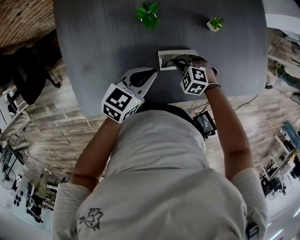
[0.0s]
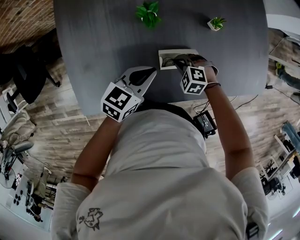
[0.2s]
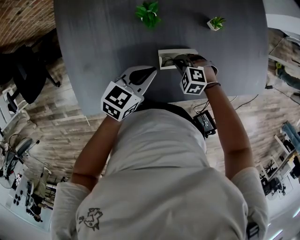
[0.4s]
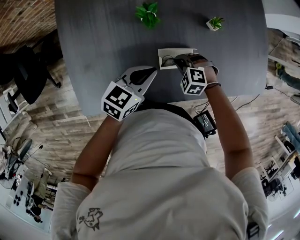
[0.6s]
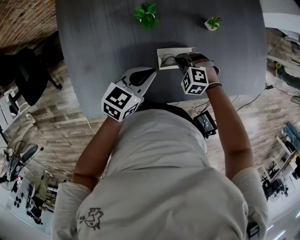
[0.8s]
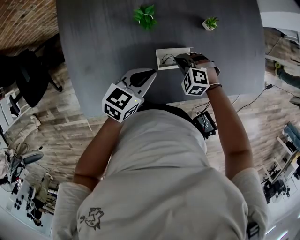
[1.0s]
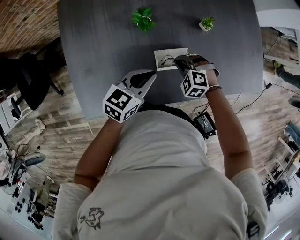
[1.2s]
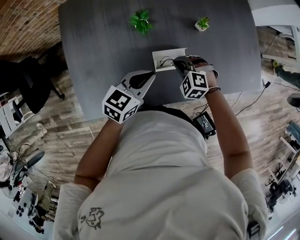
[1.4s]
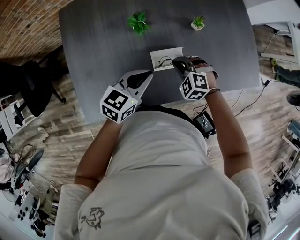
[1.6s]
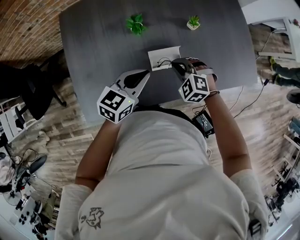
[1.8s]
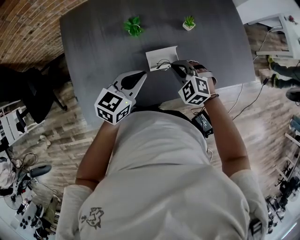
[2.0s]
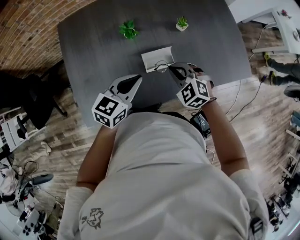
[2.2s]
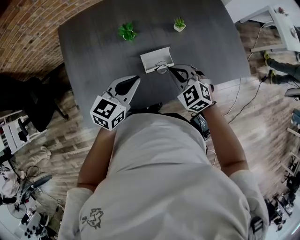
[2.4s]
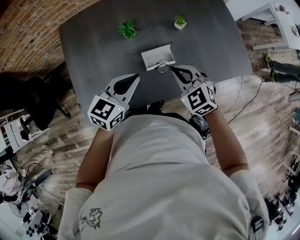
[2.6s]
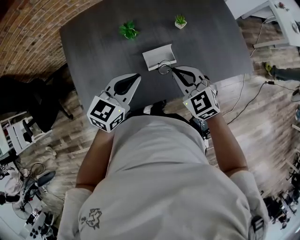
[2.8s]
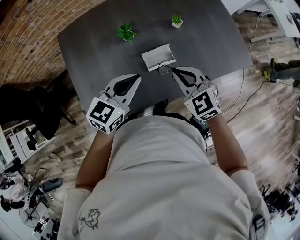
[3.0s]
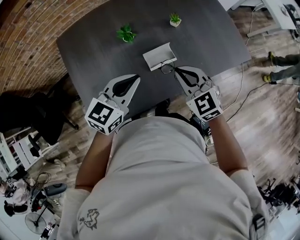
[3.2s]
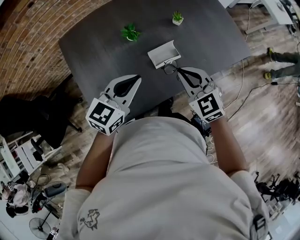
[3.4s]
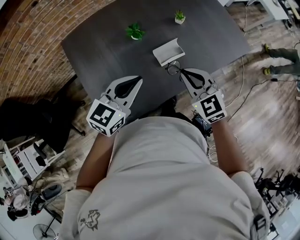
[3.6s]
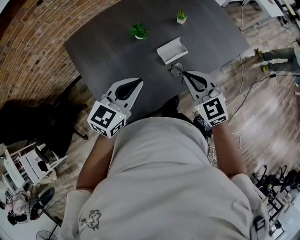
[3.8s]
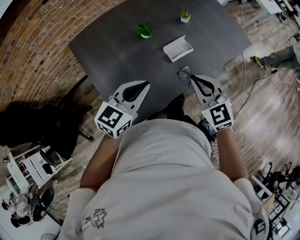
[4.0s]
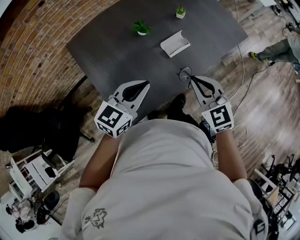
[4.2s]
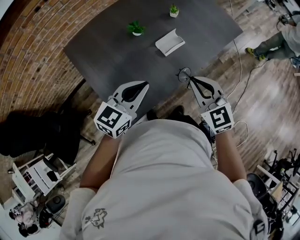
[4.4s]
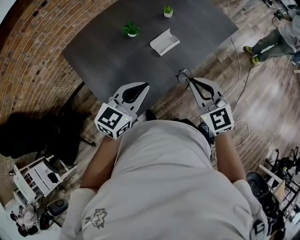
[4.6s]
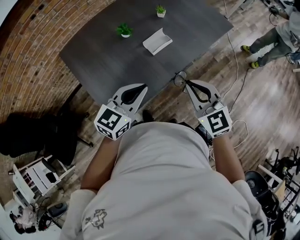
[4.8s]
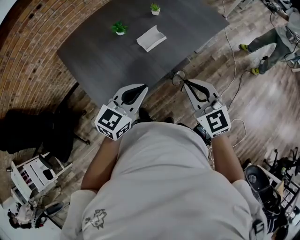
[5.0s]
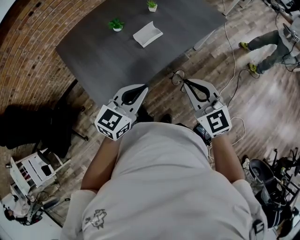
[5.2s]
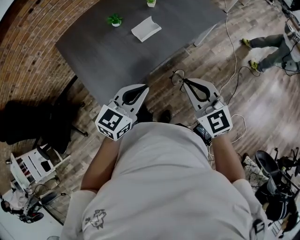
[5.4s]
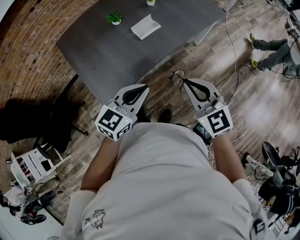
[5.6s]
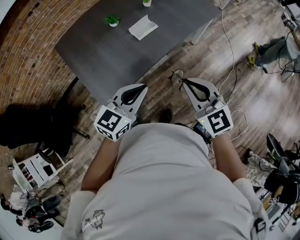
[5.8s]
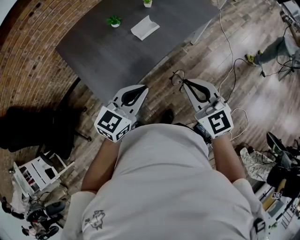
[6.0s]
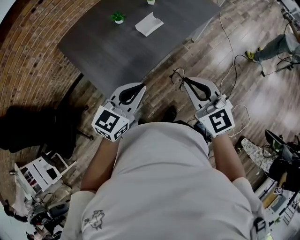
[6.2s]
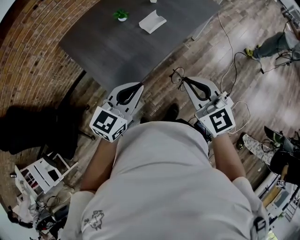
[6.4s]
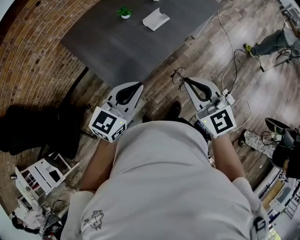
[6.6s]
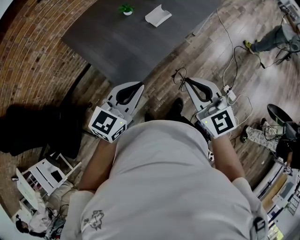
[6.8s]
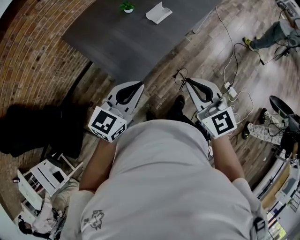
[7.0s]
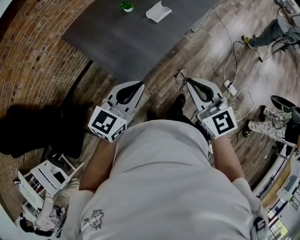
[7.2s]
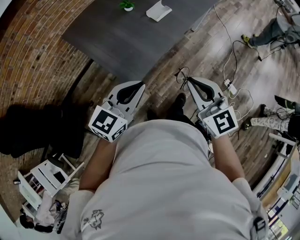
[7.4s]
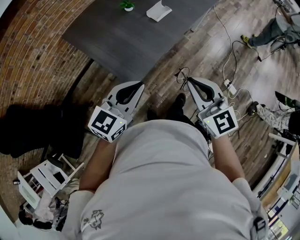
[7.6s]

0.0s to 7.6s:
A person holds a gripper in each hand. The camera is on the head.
0.0s to 1.6s: The right gripper goes some 10 cm upward. Meanwhile the left gripper changes place by approximately 5 cm.
1.6s to 3.0s: The left gripper travels upward by about 10 cm; the right gripper moves upward and backward, some 20 cm, and rotates approximately 40 degrees.
3.0s to 4.6s: The left gripper travels backward and to the left by about 20 cm, and swivels approximately 20 degrees, while the right gripper shifts roughly 20 cm backward, and changes its angle by about 30 degrees.
4.6s to 6.0s: The two grippers go about 15 cm backward and to the right.
6.0s to 7.6s: The left gripper moves to the left and backward, roughly 20 cm. Meanwhile the right gripper shifts about 20 cm backward and to the left.

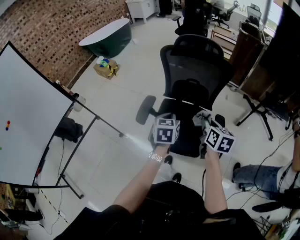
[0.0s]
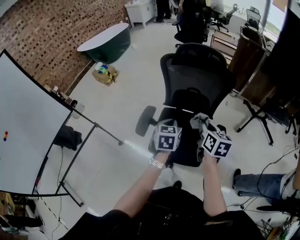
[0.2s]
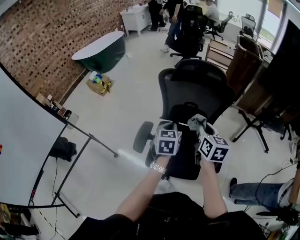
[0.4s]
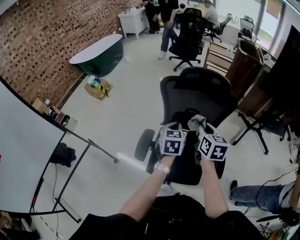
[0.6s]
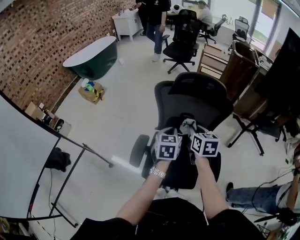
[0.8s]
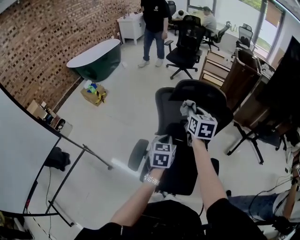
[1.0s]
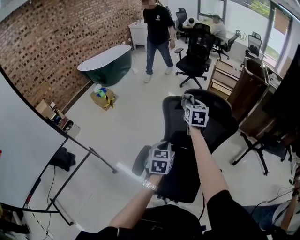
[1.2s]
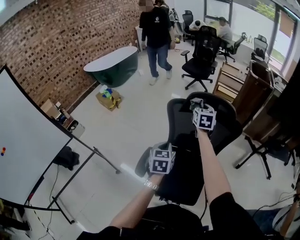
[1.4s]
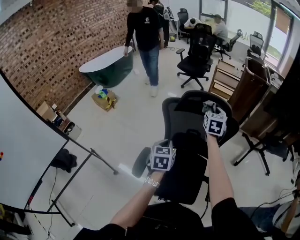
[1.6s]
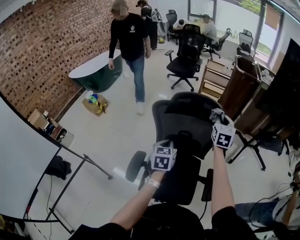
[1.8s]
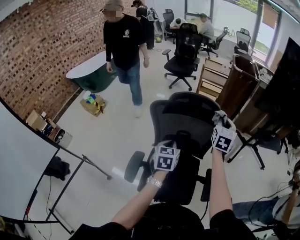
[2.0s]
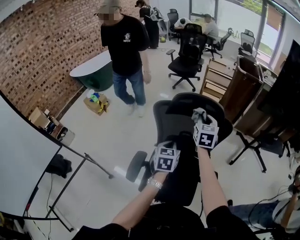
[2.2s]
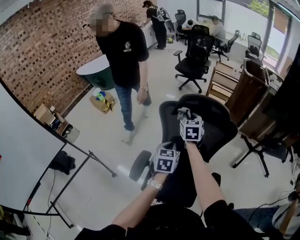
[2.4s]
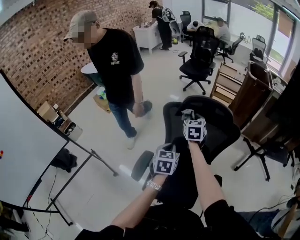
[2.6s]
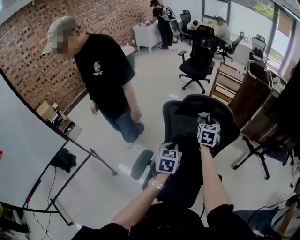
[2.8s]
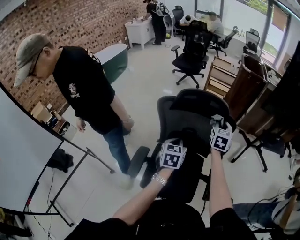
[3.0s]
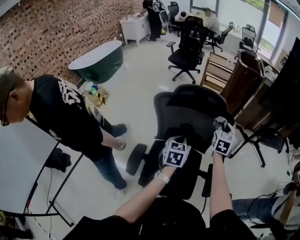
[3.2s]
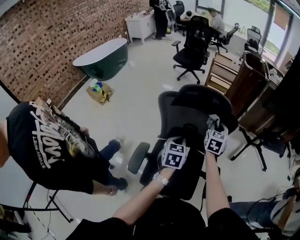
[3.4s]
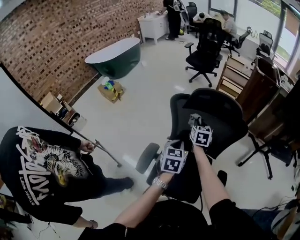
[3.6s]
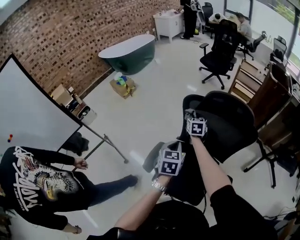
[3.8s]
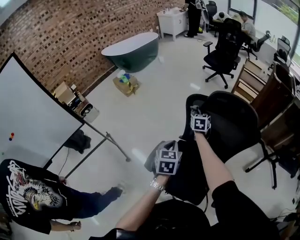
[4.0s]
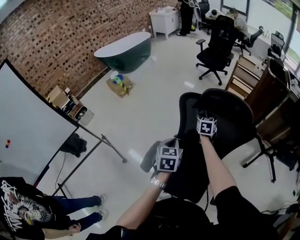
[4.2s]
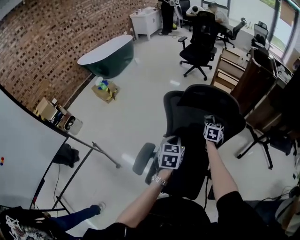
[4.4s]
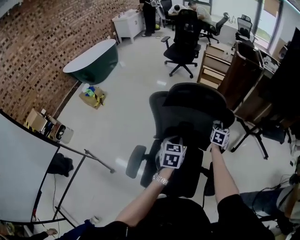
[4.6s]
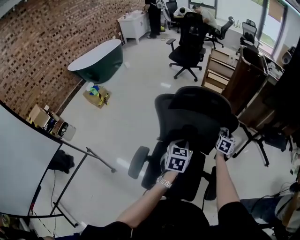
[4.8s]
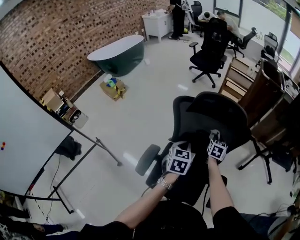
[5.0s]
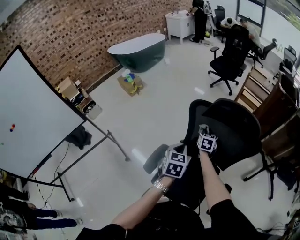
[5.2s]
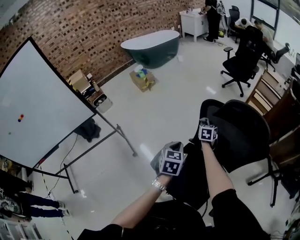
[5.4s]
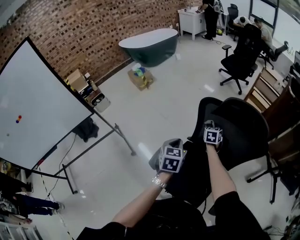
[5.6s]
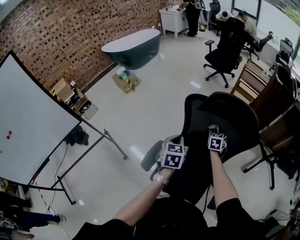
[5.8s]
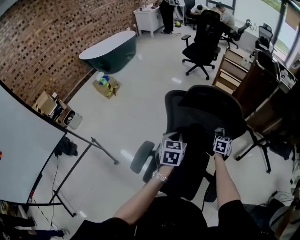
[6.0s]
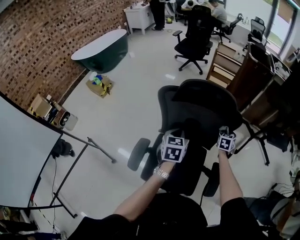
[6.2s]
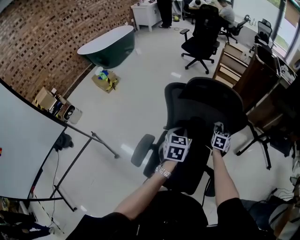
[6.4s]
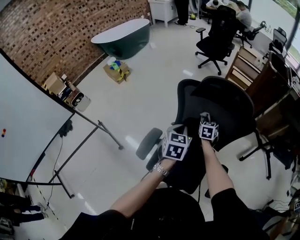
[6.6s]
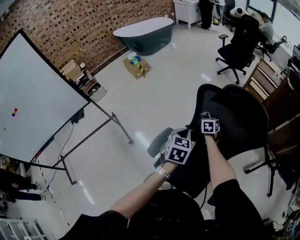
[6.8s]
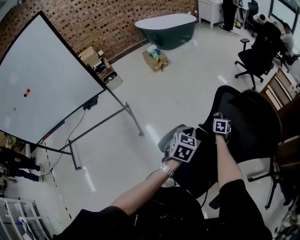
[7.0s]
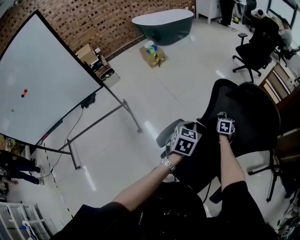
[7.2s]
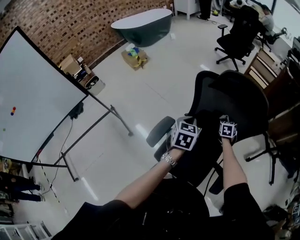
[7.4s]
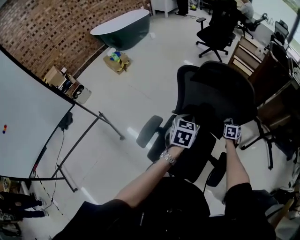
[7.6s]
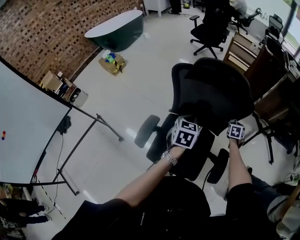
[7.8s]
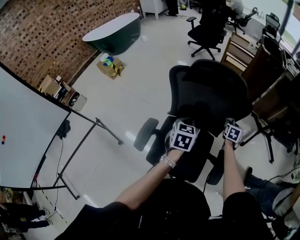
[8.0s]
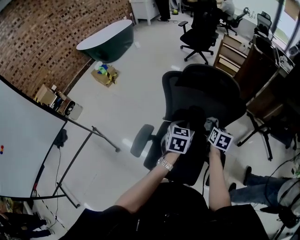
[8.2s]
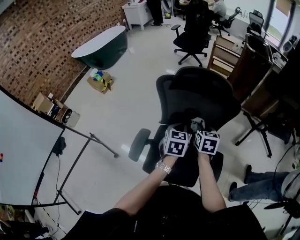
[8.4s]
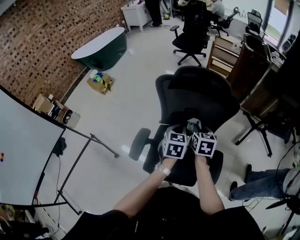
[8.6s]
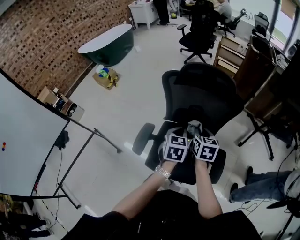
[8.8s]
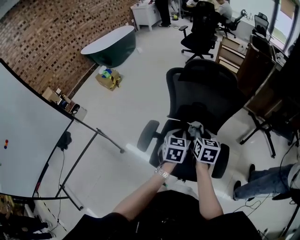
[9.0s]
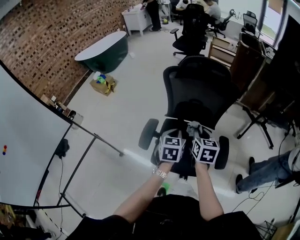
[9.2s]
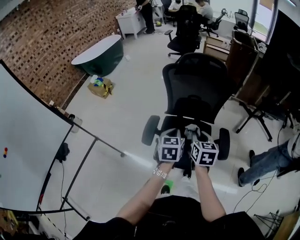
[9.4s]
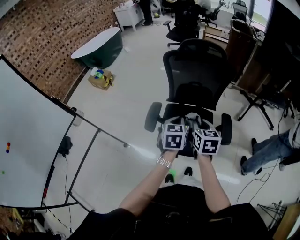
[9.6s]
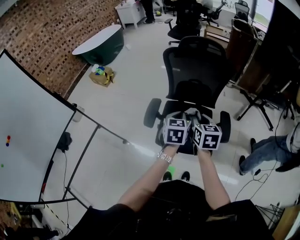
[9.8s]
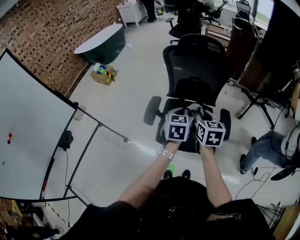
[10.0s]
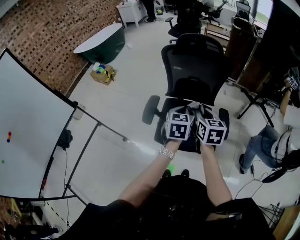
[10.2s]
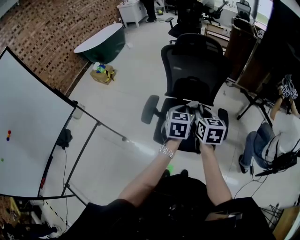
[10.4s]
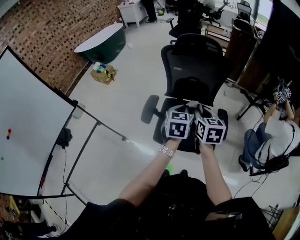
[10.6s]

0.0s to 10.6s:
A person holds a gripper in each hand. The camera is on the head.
0.0s to 1.6s: The left gripper is displaced forward by some 20 cm. Meanwhile the right gripper moves forward, about 40 cm, and rotates some 30 degrees.
1.6s to 3.0s: The right gripper moves left and right over approximately 25 cm, changing direction 2 times; the left gripper goes left and right, approximately 5 cm each way, reversing 2 times.
3.0s to 4.6s: The right gripper travels downward by about 15 cm.
6.0s to 7.6s: The right gripper moves downward, approximately 5 cm.
7.6s to 9.0s: The left gripper shifts roughly 10 cm backward; the right gripper travels backward, upward and to the left by about 35 cm, and swivels approximately 30 degrees.
9.0s to 10.6s: Both grippers travel together backward and upward, approximately 15 cm.

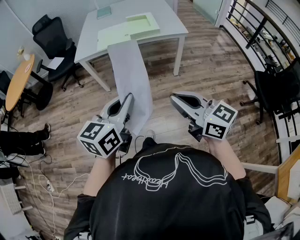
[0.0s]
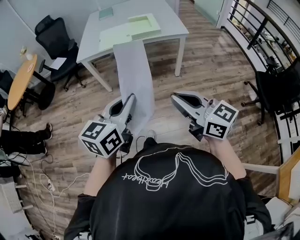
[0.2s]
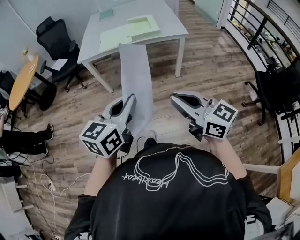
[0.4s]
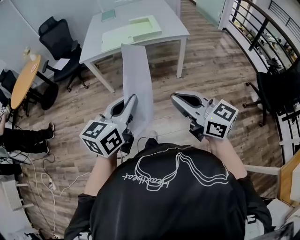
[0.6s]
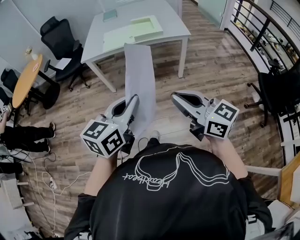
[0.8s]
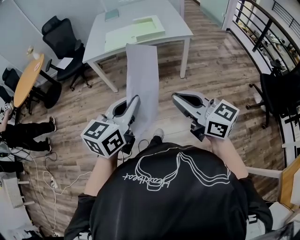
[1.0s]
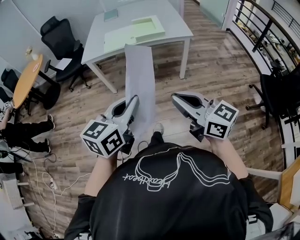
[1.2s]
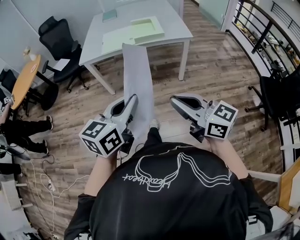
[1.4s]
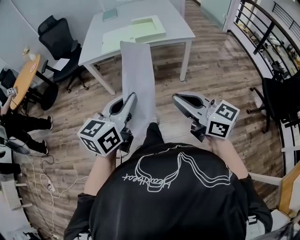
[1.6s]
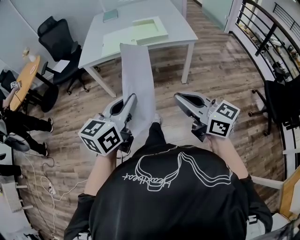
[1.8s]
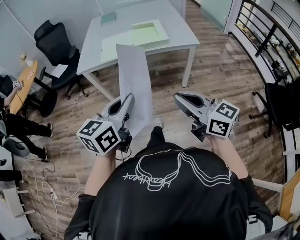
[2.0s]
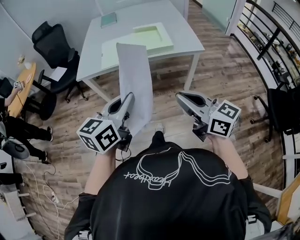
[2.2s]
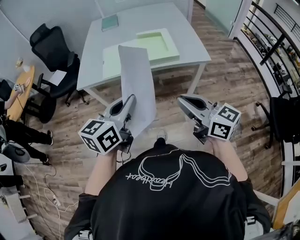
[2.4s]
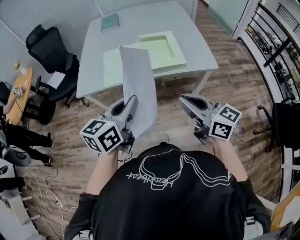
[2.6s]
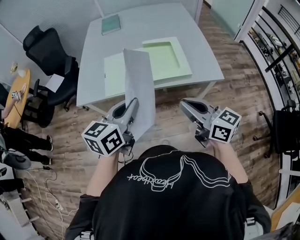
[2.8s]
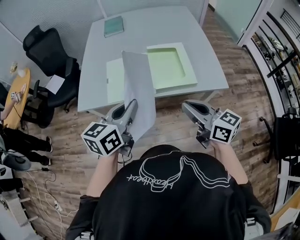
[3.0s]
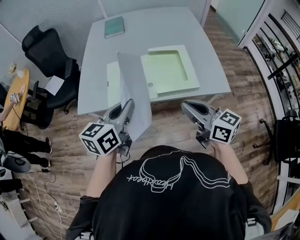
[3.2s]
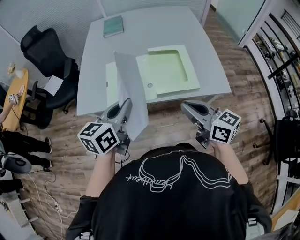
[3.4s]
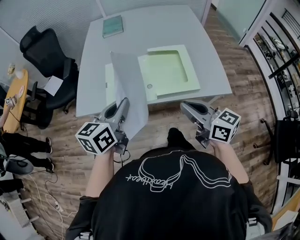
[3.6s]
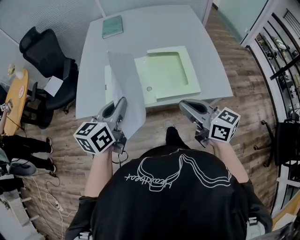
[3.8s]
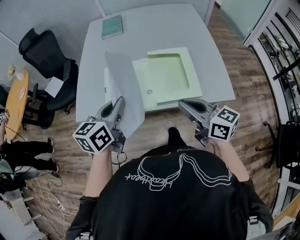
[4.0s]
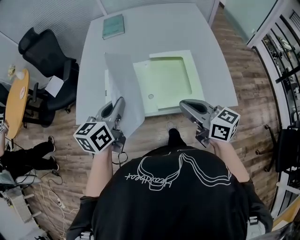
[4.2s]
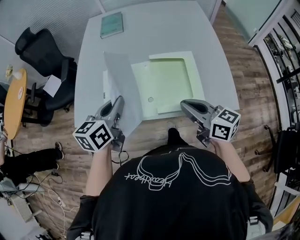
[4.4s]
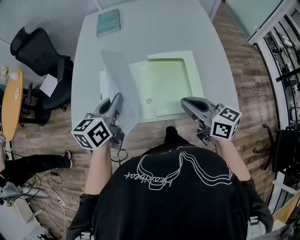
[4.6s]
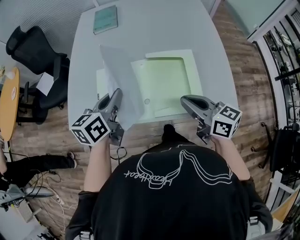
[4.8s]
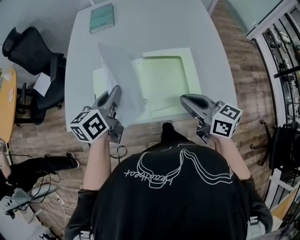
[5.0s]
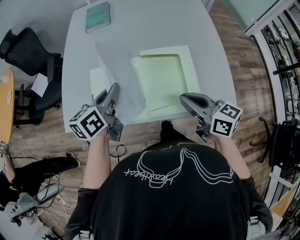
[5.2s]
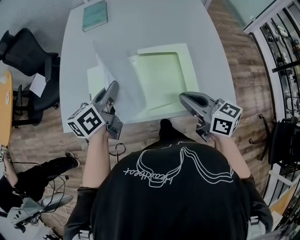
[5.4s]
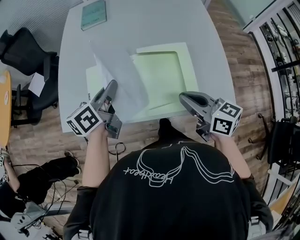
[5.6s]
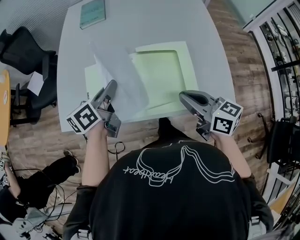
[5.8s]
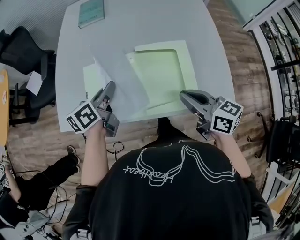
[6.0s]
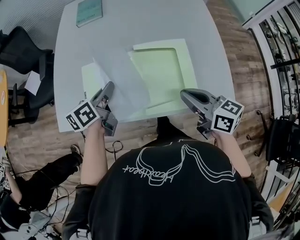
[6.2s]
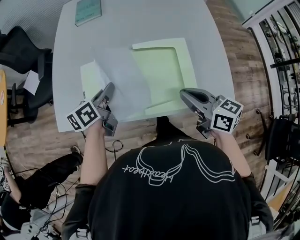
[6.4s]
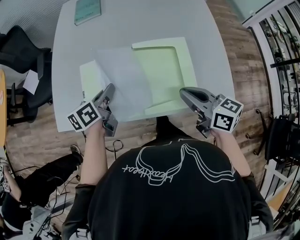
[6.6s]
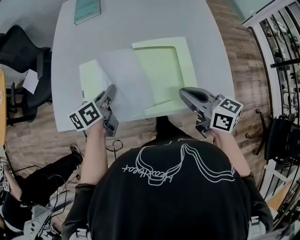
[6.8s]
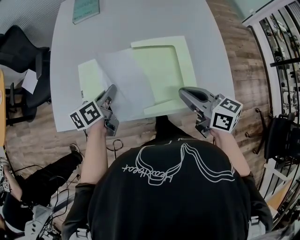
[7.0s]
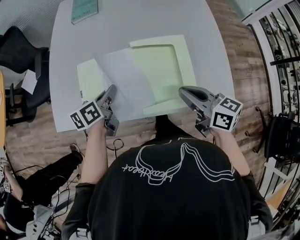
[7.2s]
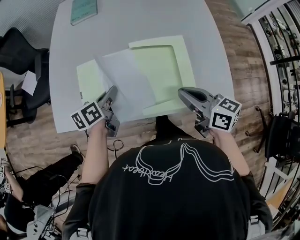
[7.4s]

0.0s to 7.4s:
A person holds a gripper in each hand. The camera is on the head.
0.0s to 1.4s: The grippers move only a little.
1.4s to 3.0s: Both grippers are carried forward, some 50 cm.
3.0s to 4.4s: Both grippers move forward, some 15 cm.
4.4s to 6.0s: The left gripper moves forward and downward, roughly 15 cm, and turns by approximately 20 degrees; the right gripper goes approximately 5 cm forward.
6.0s to 7.4s: The left gripper travels downward by about 5 cm.
